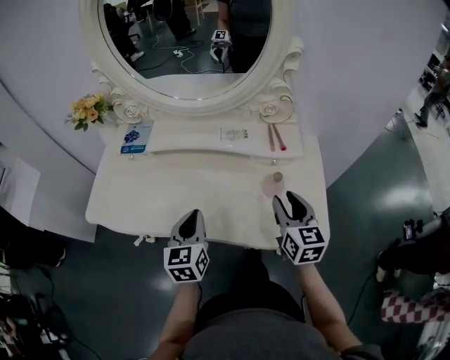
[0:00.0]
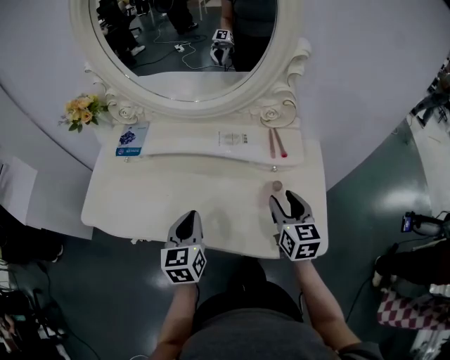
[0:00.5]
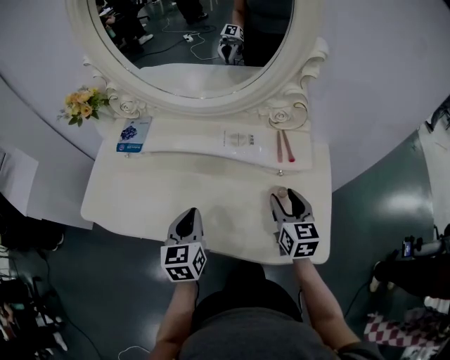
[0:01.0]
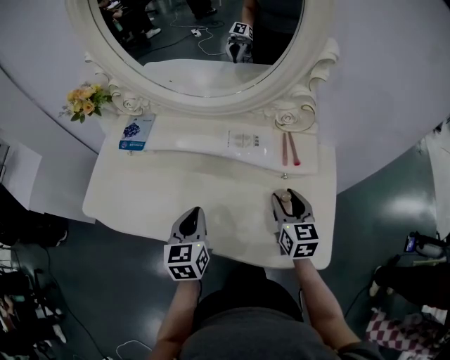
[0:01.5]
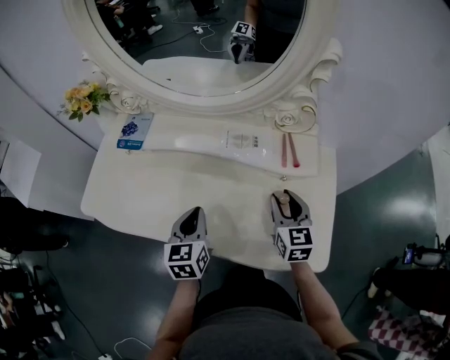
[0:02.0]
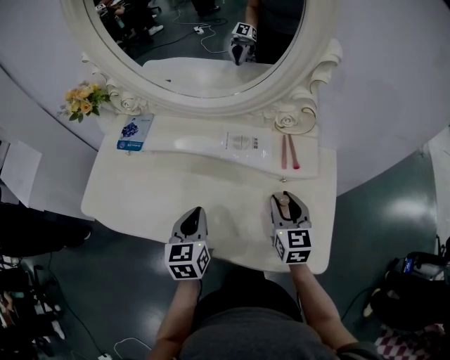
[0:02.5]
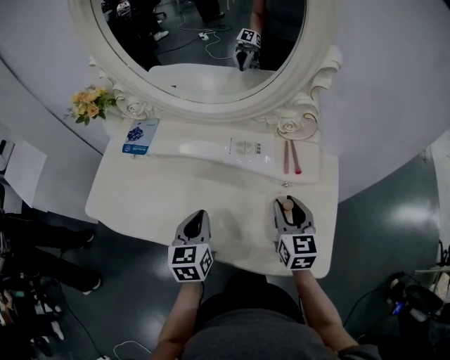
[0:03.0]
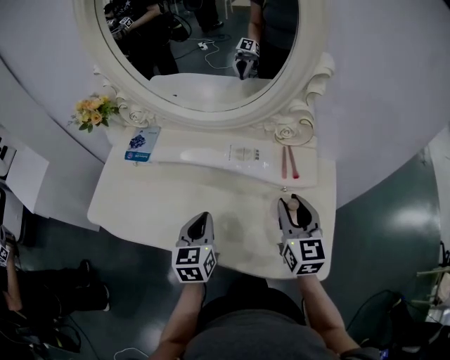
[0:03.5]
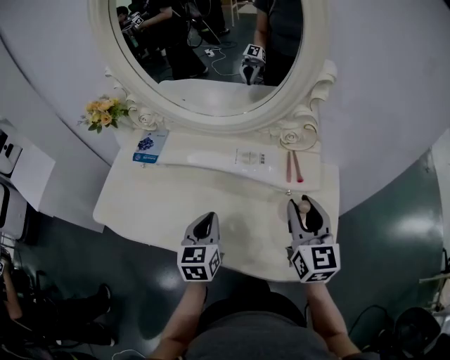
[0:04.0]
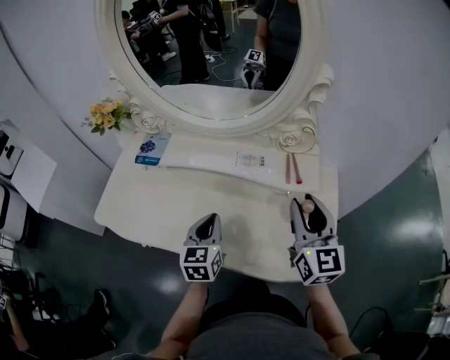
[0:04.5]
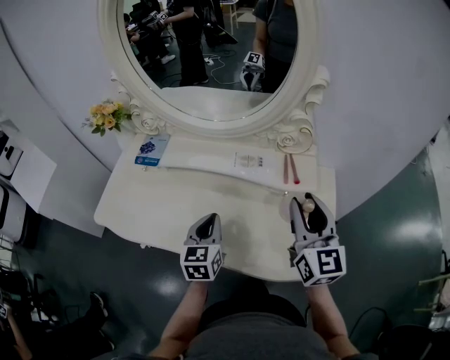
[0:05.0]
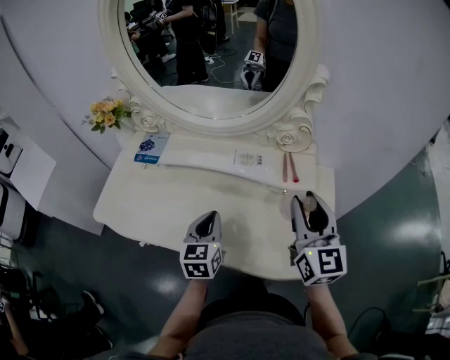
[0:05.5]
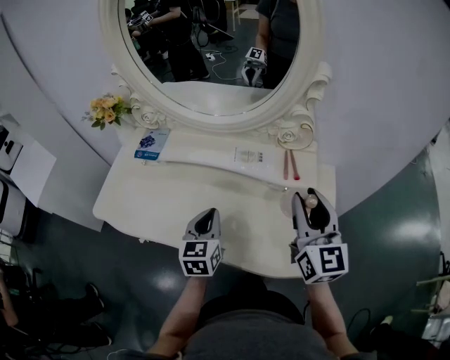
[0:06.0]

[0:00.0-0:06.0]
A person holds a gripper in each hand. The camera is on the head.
0:00.0 to 0:02.0: The right gripper shifts approximately 10 cm forward and downward; the left gripper travels forward by roughly 5 cm.
0:02.0 to 0:04.0: The right gripper goes approximately 10 cm upward.
0:04.0 to 0:06.0: The right gripper goes about 5 cm upward.

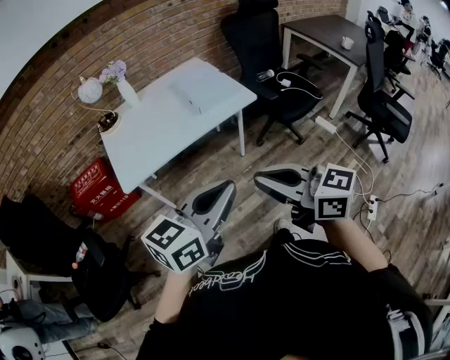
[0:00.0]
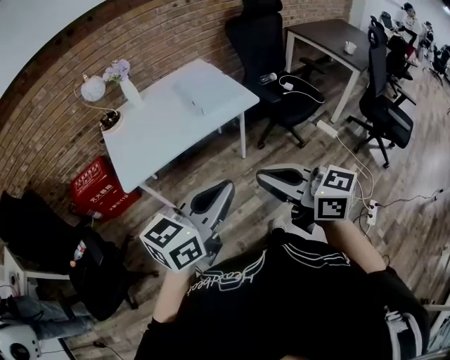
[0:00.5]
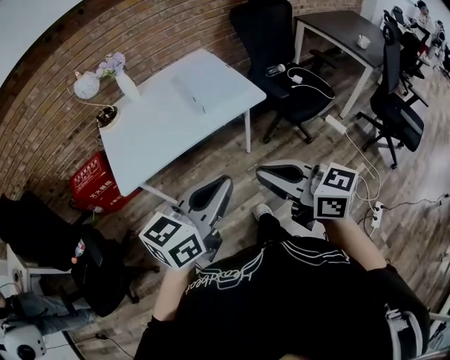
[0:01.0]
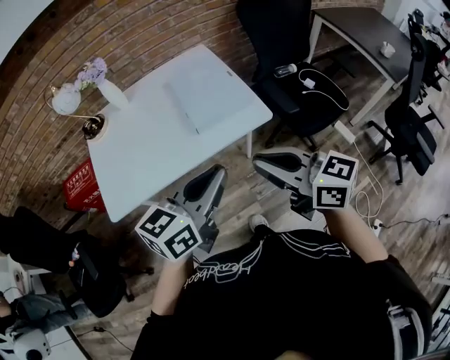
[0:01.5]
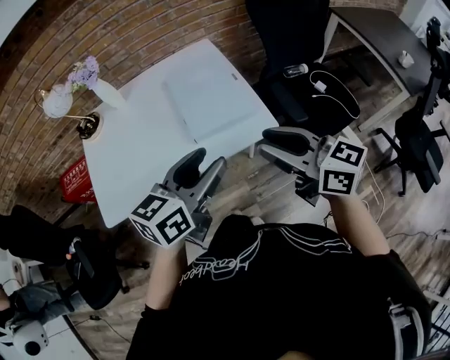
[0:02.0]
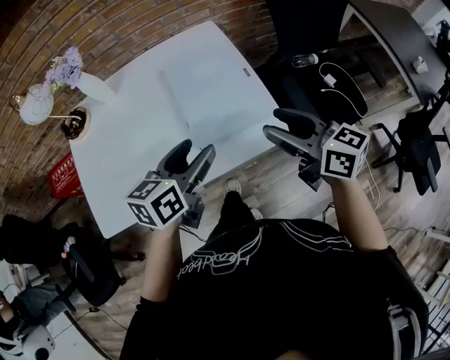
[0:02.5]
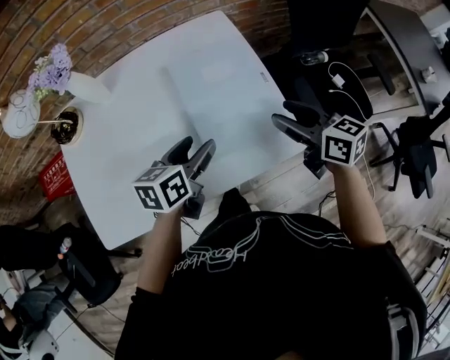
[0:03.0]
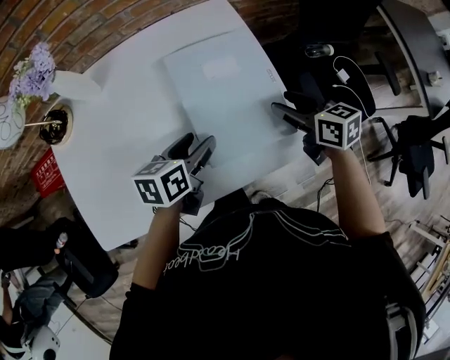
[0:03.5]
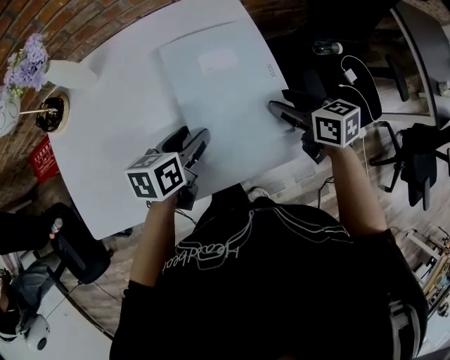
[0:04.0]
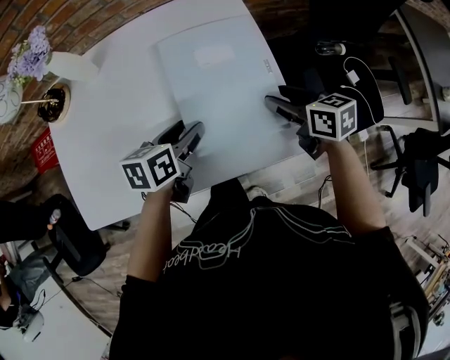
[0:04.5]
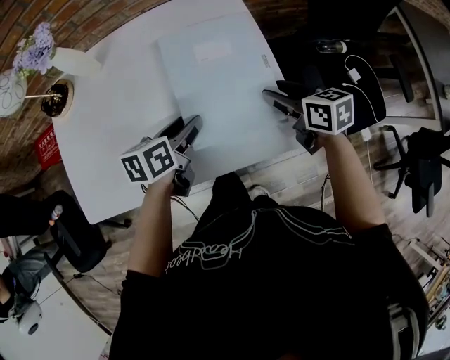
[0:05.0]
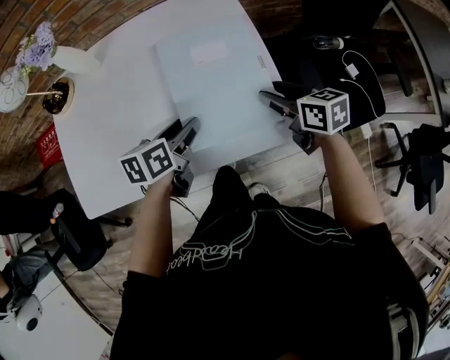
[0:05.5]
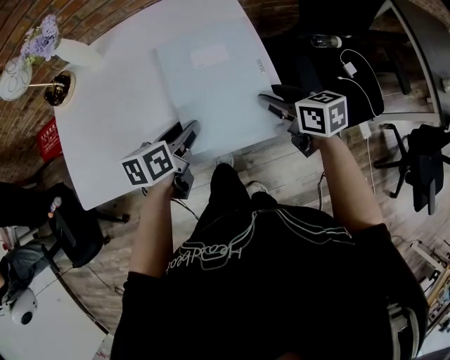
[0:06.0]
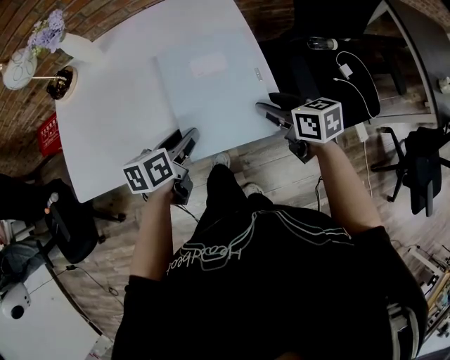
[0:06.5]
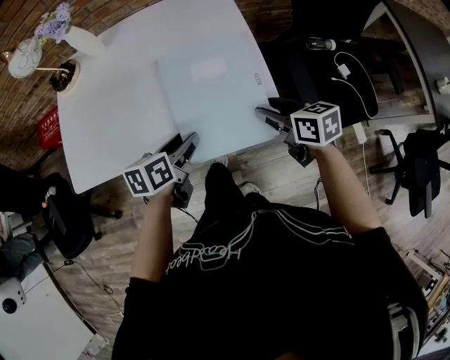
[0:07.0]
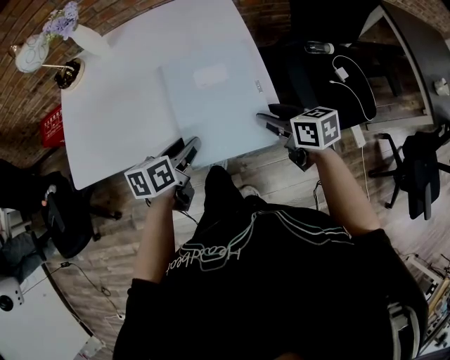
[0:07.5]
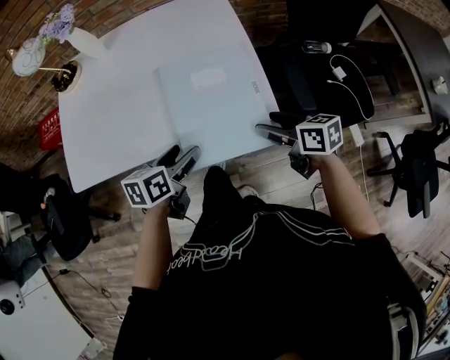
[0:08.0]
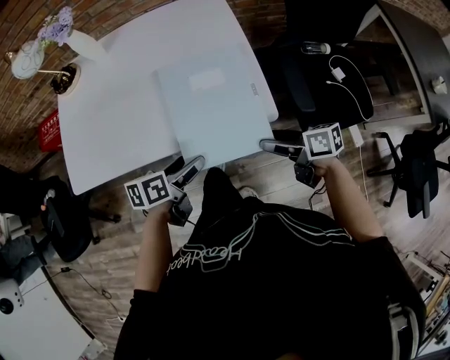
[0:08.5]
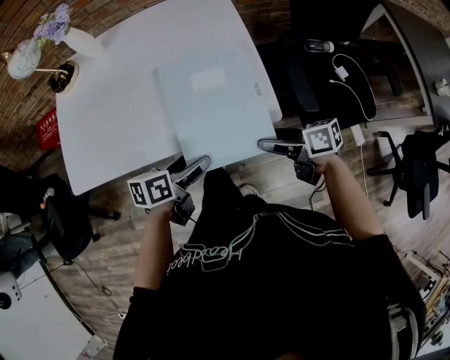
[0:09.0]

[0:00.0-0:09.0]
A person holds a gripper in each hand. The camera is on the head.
0:00.0 to 0:02.0: The pair of grippers is taken forward, roughly 40 cm. The left gripper opens up; the right gripper opens its fingers.
0:02.0 to 0:04.5: Both grippers travel together forward and downward, about 35 cm. The right gripper rotates roughly 30 degrees. Meanwhile the left gripper rotates about 30 degrees.
0:04.5 to 0:07.0: The grippers both shift backward by approximately 15 cm.
0:07.0 to 0:09.0: The right gripper changes place by about 10 cm, and turns by some 30 degrees. The left gripper shifts by about 5 cm, and opens.

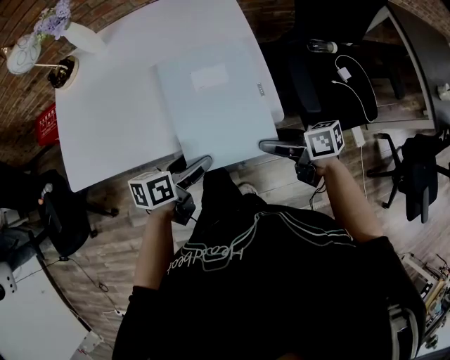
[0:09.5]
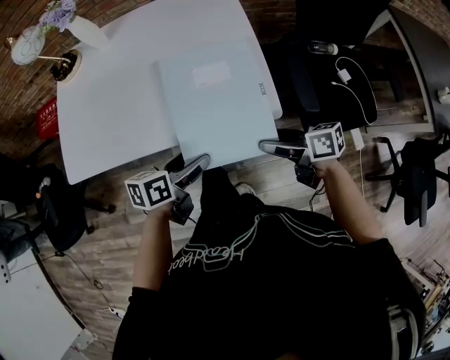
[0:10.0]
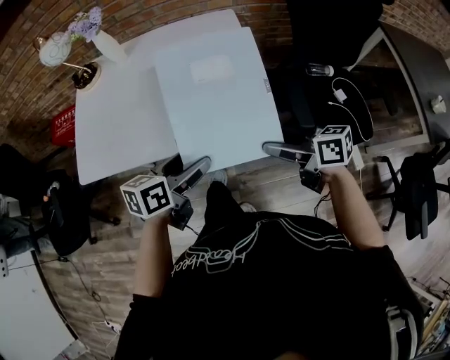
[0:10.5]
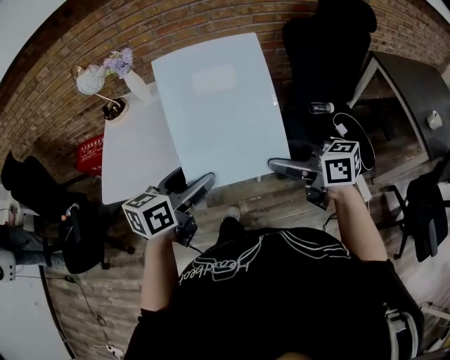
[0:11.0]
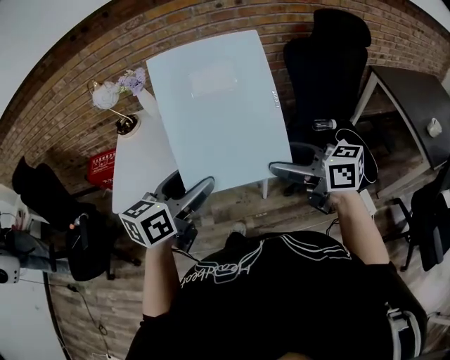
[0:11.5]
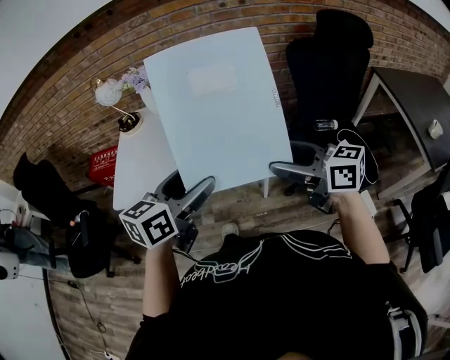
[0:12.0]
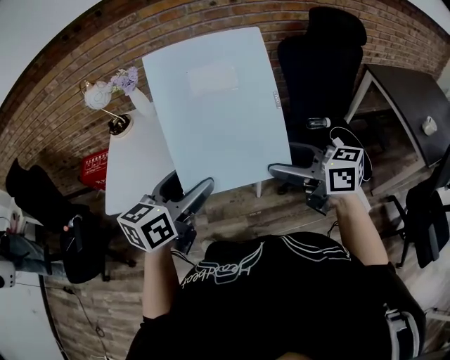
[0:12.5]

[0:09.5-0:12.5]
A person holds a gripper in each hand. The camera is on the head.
0:09.5 to 0:11.0: Both grippers move upward, approximately 25 cm. The right gripper turns by about 30 degrees. The left gripper changes its angle by about 30 degrees.
0:11.0 to 0:12.5: Both grippers move upward, about 5 cm.

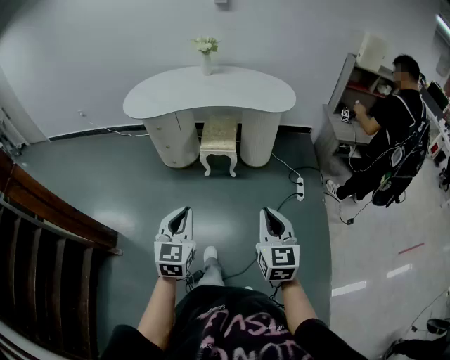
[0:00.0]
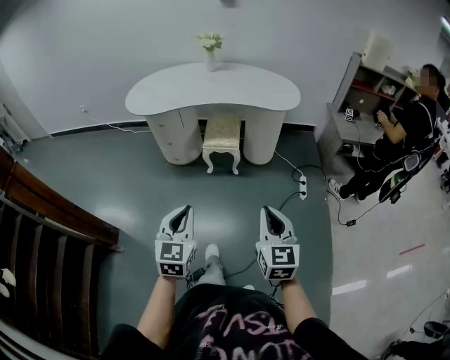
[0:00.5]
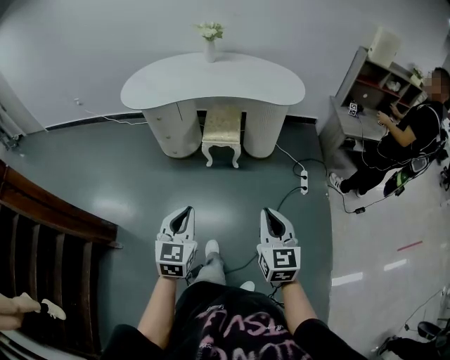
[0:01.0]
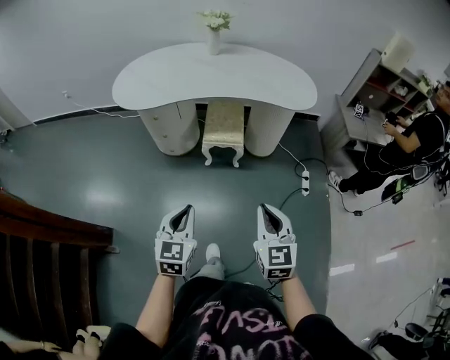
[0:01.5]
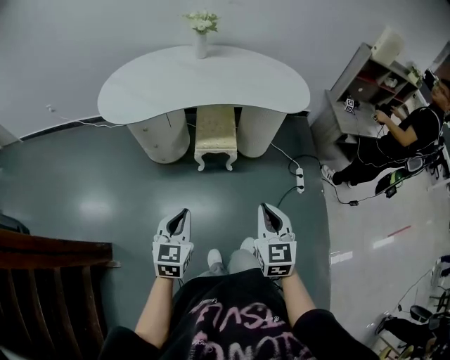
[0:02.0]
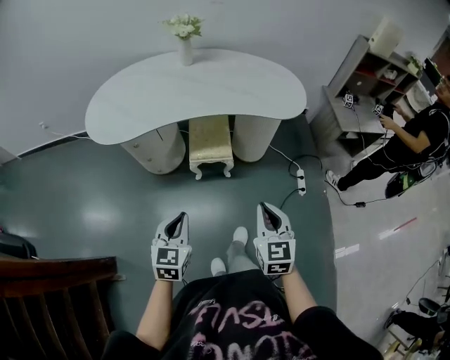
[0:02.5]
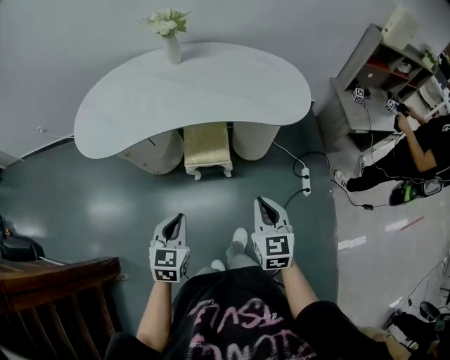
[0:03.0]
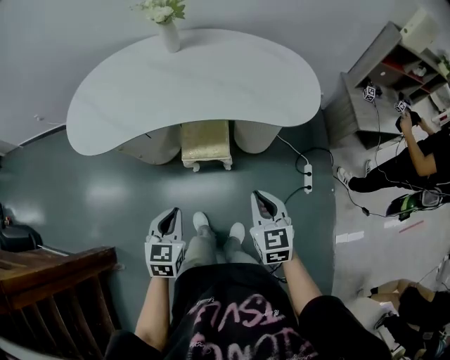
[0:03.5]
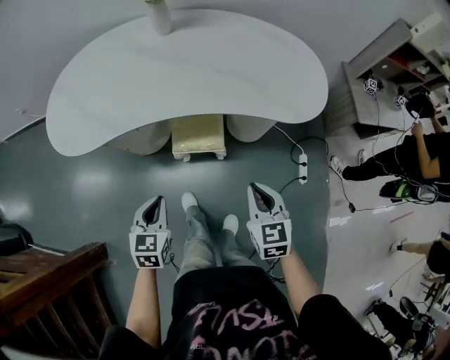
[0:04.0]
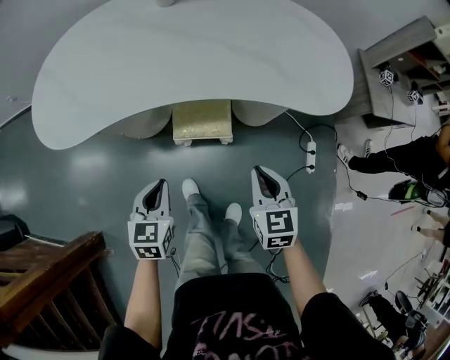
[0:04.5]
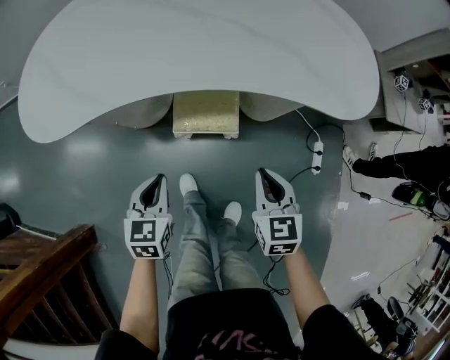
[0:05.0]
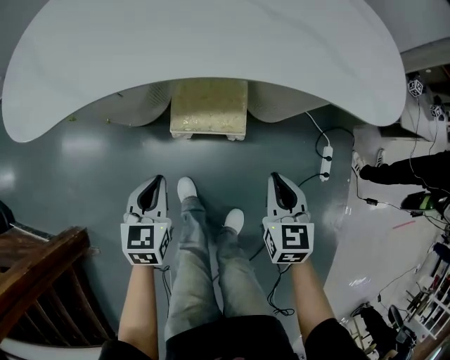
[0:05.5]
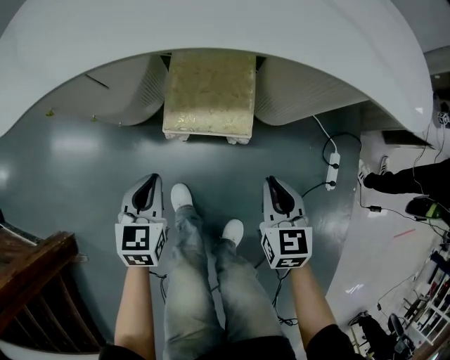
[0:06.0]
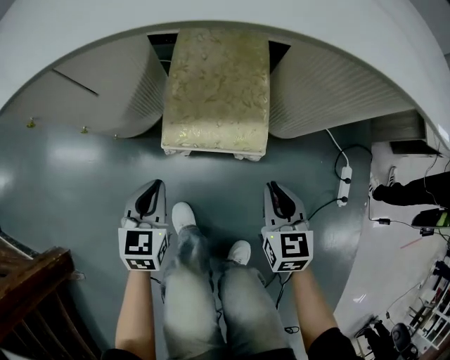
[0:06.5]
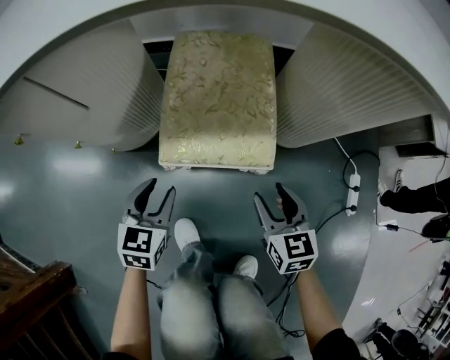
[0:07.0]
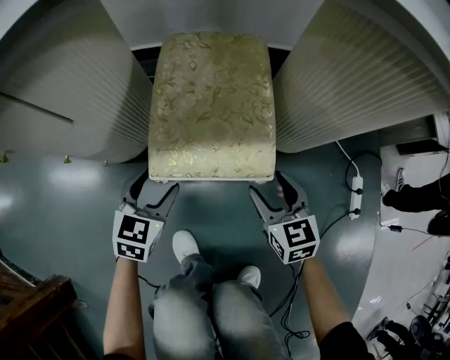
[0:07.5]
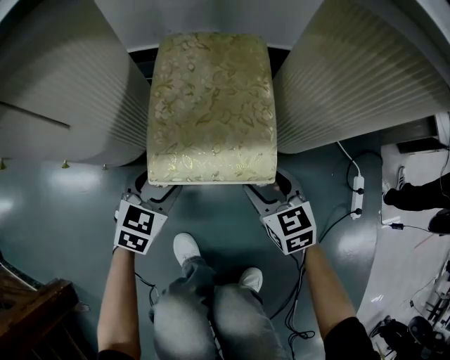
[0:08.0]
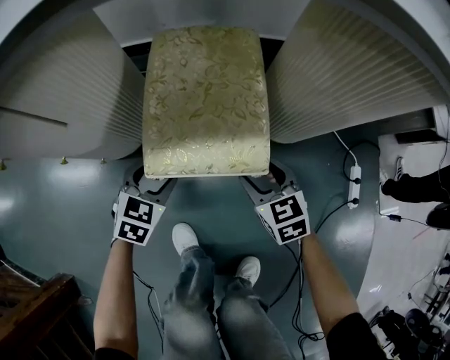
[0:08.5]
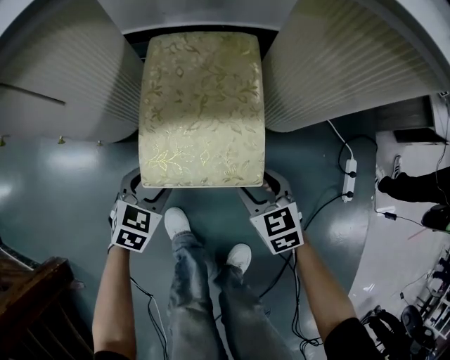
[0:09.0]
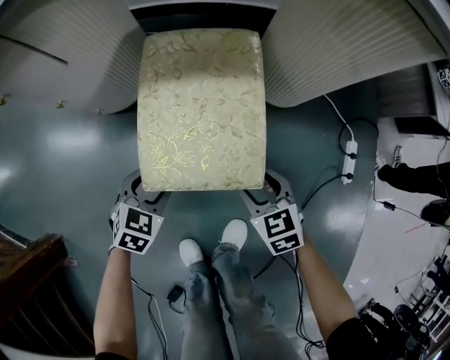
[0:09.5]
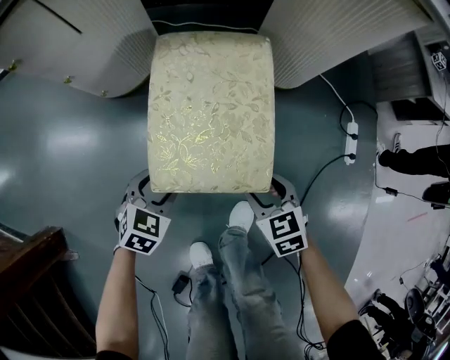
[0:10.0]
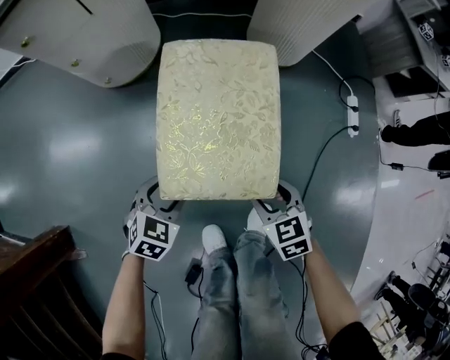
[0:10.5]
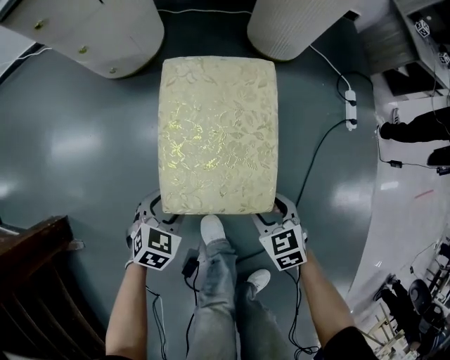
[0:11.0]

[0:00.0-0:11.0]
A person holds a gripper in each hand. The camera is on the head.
0:00.0 to 0:02.0: The two grippers go approximately 20 cm forward and to the left.
0:02.0 to 0:03.5: Both grippers move forward, roughly 20 cm.
0:03.5 to 0:05.5: The two grippers go about 25 cm downward and forward.
0:05.5 to 0:07.5: The right gripper is displaced downward by approximately 25 cm, and opens its fingers. Meanwhile the left gripper is displaced downward and forward by roughly 30 cm, and opens its fingers.
0:07.5 to 0:09.0: There are only small adjustments of the grippers.
0:09.0 to 0:11.0: There are only small adjustments of the grippers.
